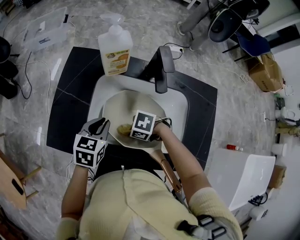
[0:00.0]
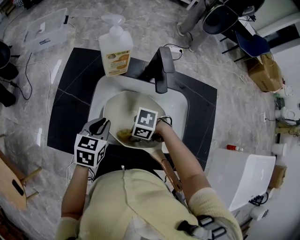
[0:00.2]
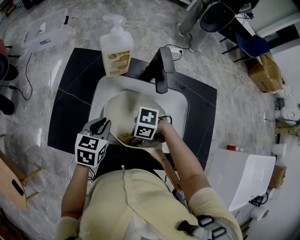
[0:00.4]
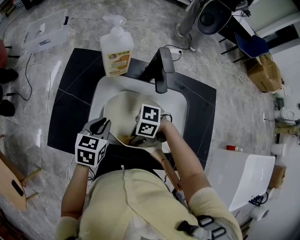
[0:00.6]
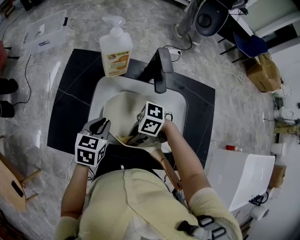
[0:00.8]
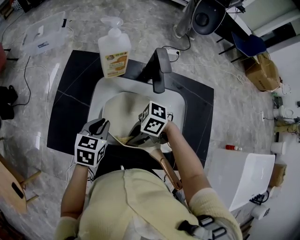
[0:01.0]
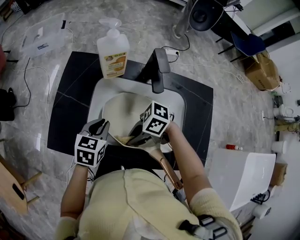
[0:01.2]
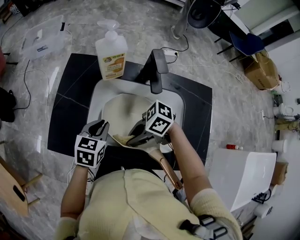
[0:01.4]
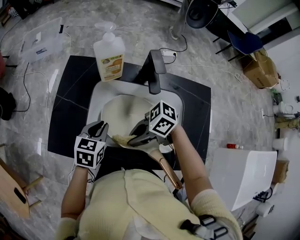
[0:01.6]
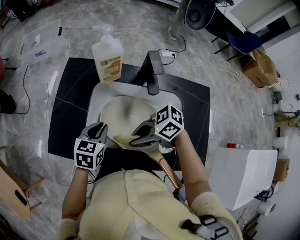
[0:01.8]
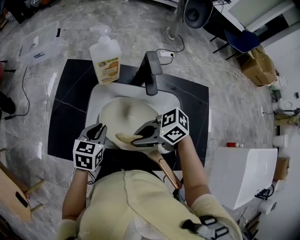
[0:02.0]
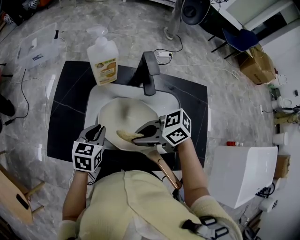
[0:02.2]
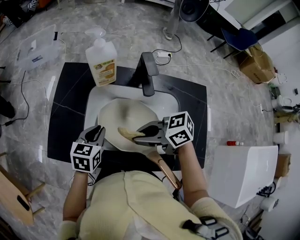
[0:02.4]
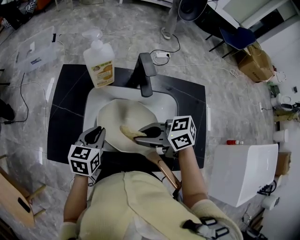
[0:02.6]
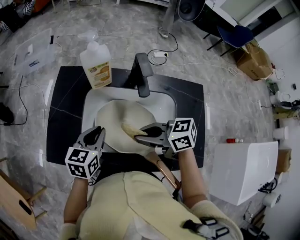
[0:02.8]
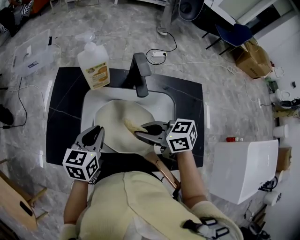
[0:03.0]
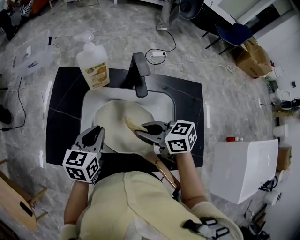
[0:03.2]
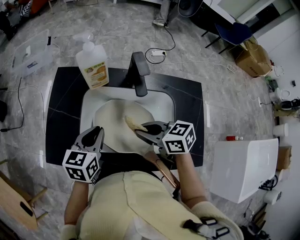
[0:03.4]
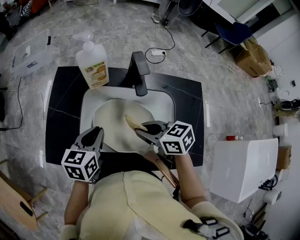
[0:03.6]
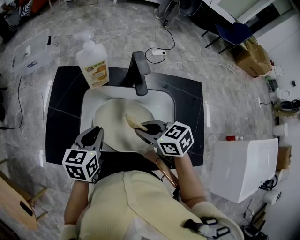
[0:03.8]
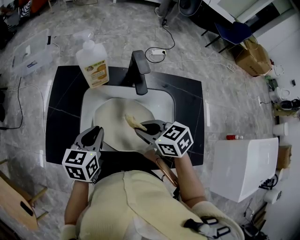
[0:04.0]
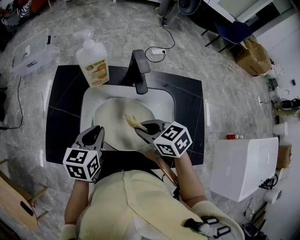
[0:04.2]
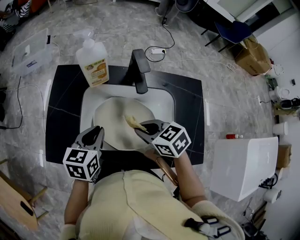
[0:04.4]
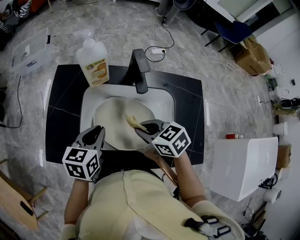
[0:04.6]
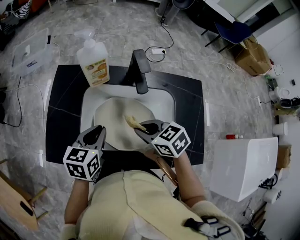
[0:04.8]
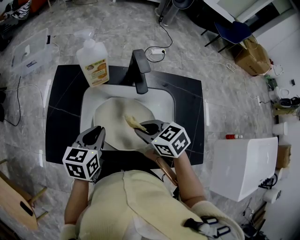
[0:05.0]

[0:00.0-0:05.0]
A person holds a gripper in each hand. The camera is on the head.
0:00.0 to 0:01.6: The right gripper goes approximately 10 cm upward, and tilts its fingers approximately 30 degrees upward.
0:01.6 to 0:03.4: The right gripper moves some 10 cm, and rotates some 50 degrees. Meanwhile the left gripper shifts approximately 5 cm upward.
0:03.4 to 0:05.0: The grippers make only small movements.

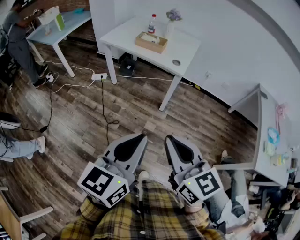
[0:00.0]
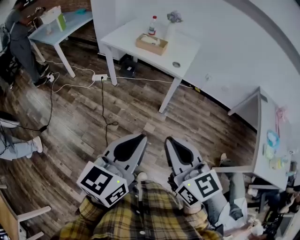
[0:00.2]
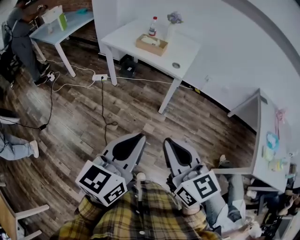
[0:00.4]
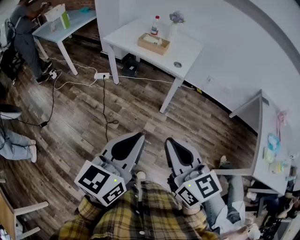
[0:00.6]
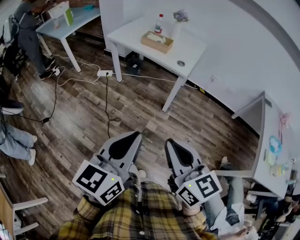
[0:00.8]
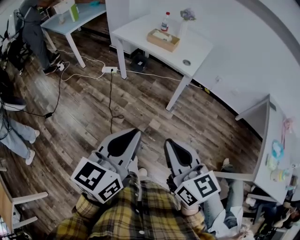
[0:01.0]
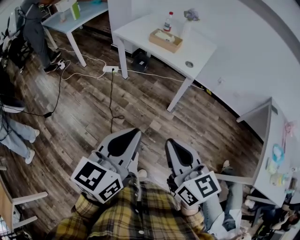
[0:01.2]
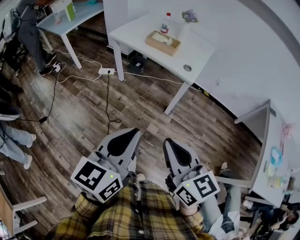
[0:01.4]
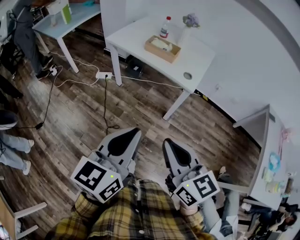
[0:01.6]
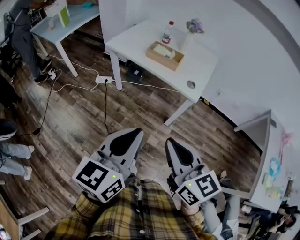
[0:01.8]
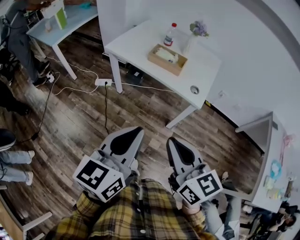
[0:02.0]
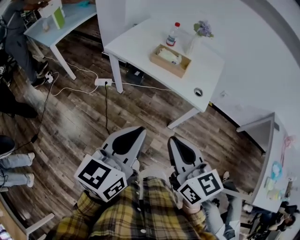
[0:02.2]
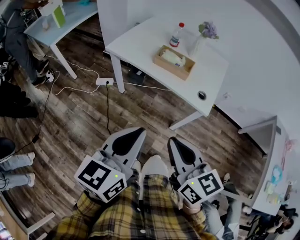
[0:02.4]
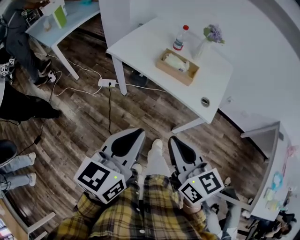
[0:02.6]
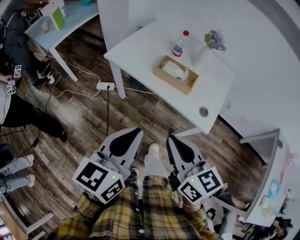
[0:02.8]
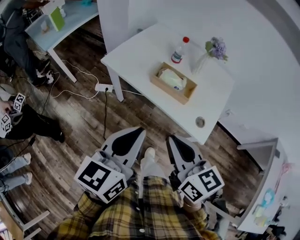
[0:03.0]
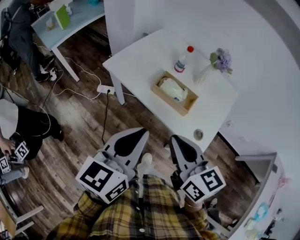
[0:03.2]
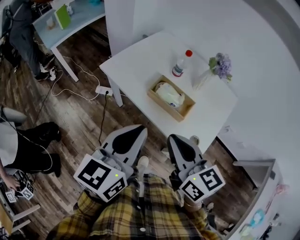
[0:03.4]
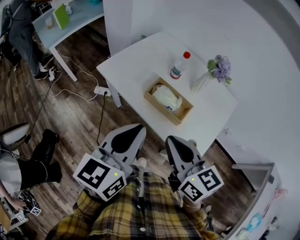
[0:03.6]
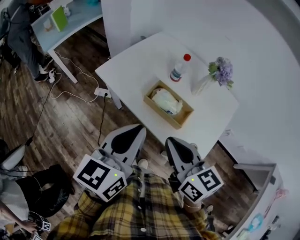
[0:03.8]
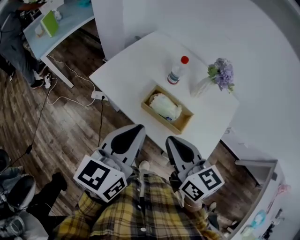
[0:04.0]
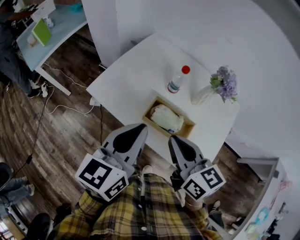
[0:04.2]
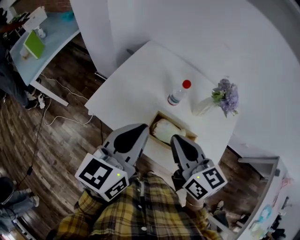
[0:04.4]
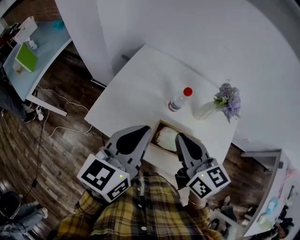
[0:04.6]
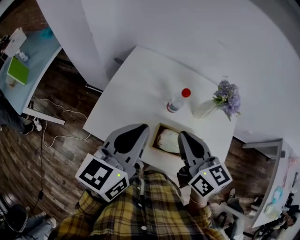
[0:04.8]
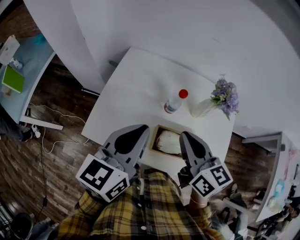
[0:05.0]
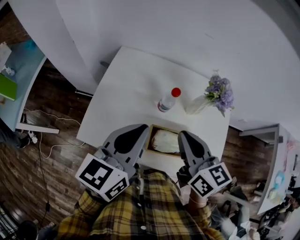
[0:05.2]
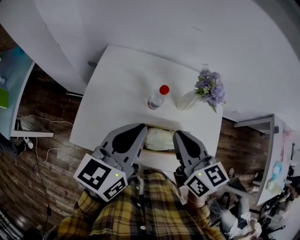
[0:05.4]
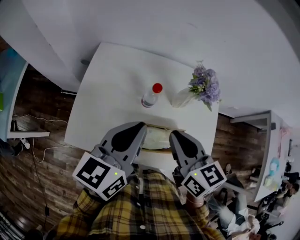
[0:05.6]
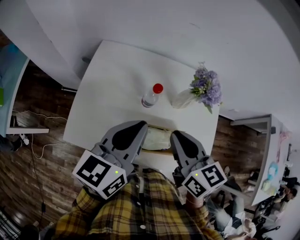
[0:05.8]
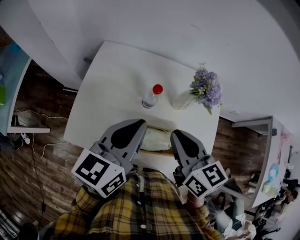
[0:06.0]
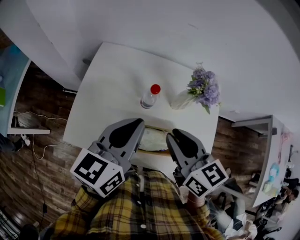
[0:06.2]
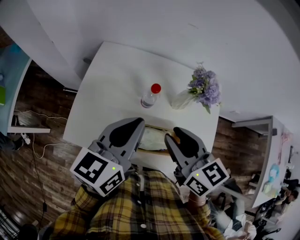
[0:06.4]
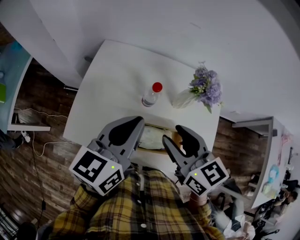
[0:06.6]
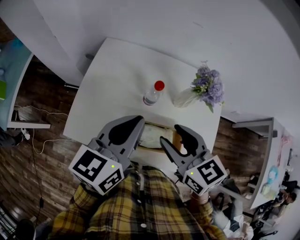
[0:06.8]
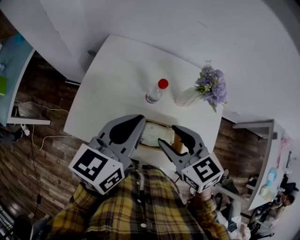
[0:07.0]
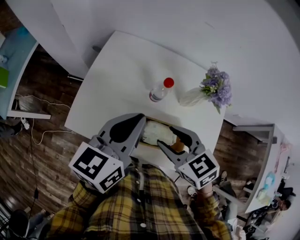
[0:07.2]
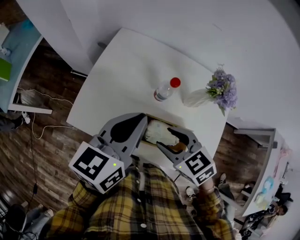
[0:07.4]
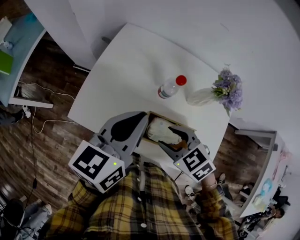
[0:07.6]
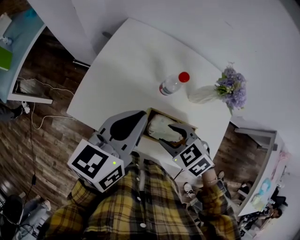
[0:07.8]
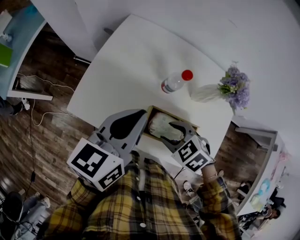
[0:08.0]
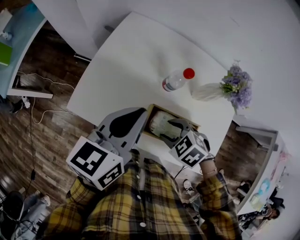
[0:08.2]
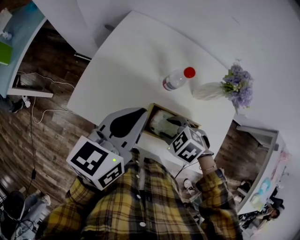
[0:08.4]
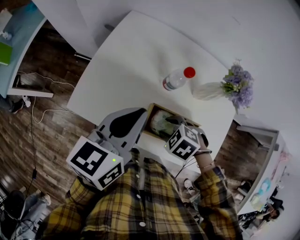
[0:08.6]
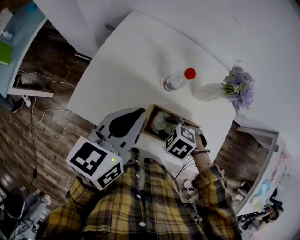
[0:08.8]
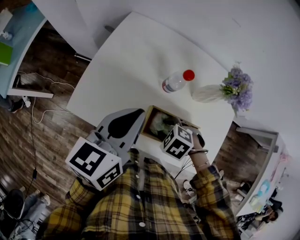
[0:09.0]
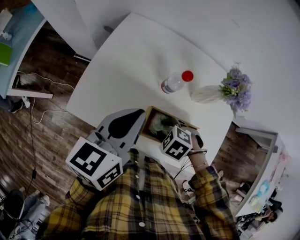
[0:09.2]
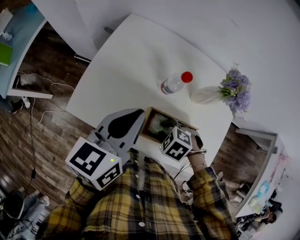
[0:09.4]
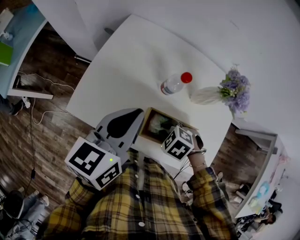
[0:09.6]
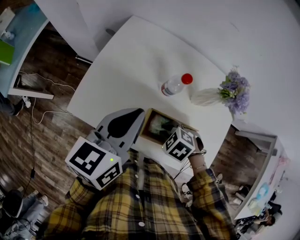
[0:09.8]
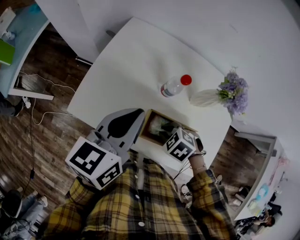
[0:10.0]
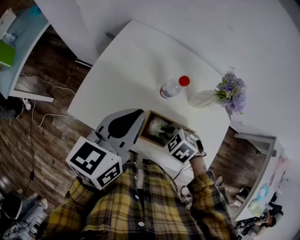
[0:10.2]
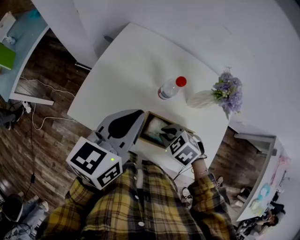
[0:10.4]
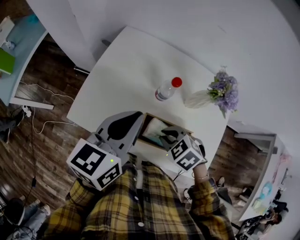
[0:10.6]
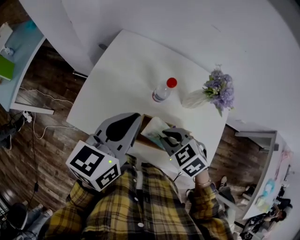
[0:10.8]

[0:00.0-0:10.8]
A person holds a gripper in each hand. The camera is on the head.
0:00.0 to 0:01.6: The two grippers go approximately 15 cm forward.
0:01.6 to 0:03.0: The grippers both shift forward by approximately 30 cm.
0:03.0 to 0:04.6: Both grippers move forward, roughly 30 cm.
0:04.6 to 0:06.2: The left gripper travels forward and to the right by roughly 10 cm. Meanwhile the right gripper shifts about 5 cm to the right.
0:06.2 to 0:07.8: The left gripper moves approximately 5 cm. Meanwhile the right gripper goes roughly 15 cm downward, angles its fingers downward, by some 40 degrees, and opens up.
0:07.8 to 0:09.2: The right gripper heads downward, covering approximately 10 cm, and changes its angle by roughly 20 degrees.
0:09.2 to 0:10.8: The right gripper moves upward, about 10 cm, swivels roughly 30 degrees, and closes its fingers.

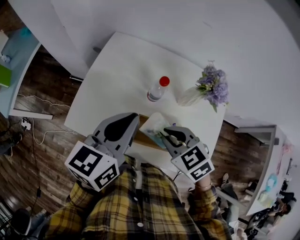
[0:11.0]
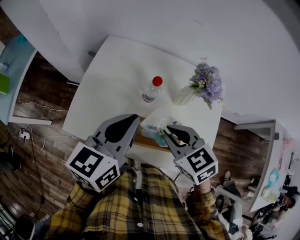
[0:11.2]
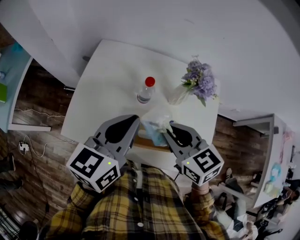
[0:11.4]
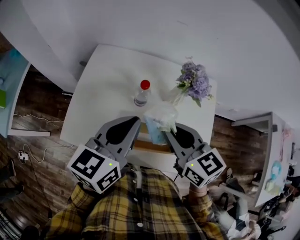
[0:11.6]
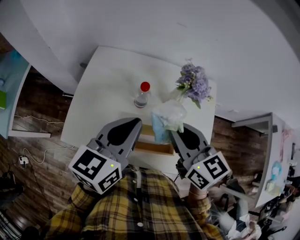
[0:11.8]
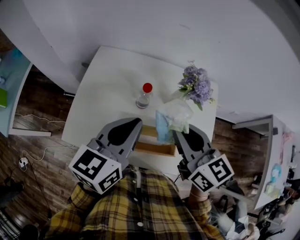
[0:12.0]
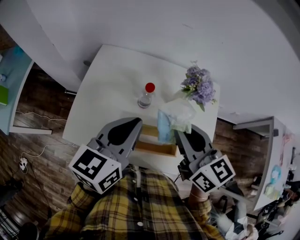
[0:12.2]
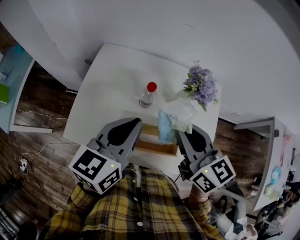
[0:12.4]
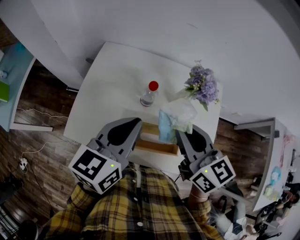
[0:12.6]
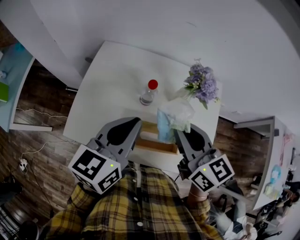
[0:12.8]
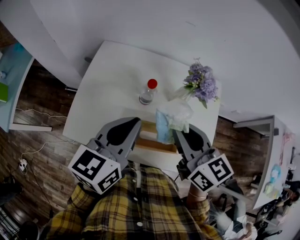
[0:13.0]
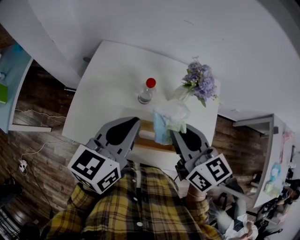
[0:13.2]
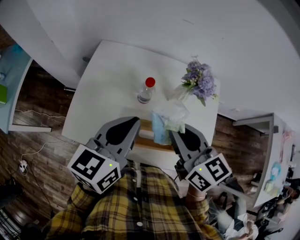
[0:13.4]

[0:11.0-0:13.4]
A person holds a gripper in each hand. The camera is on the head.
0:11.0 to 0:12.2: The right gripper moves upward and to the right, roughly 15 cm, and points its fingers roughly 30 degrees further upward.
0:12.2 to 0:13.4: The grippers stay close to where they were, moving slightly.

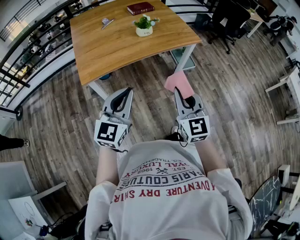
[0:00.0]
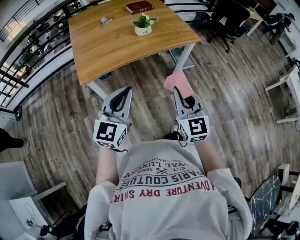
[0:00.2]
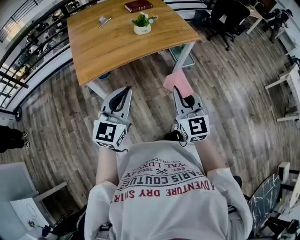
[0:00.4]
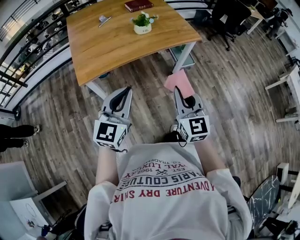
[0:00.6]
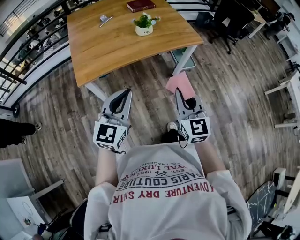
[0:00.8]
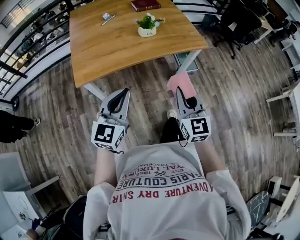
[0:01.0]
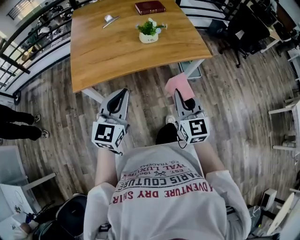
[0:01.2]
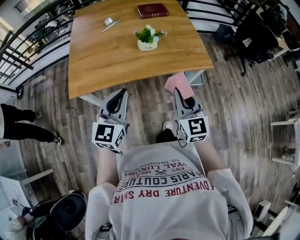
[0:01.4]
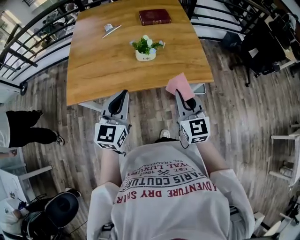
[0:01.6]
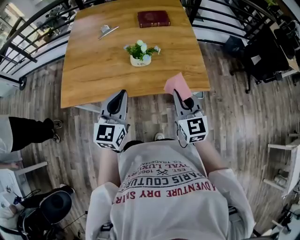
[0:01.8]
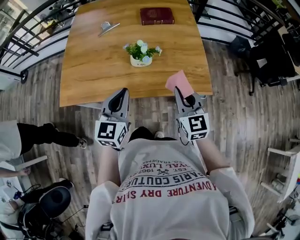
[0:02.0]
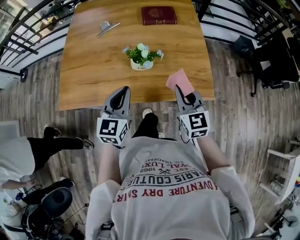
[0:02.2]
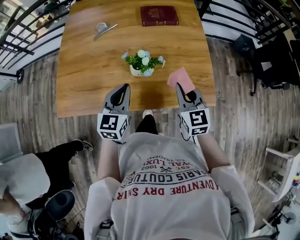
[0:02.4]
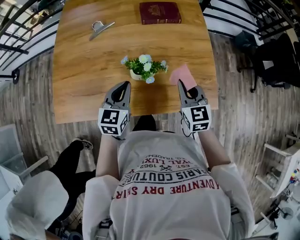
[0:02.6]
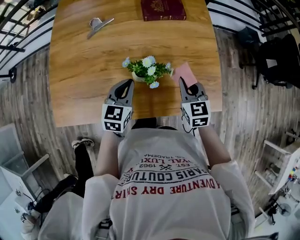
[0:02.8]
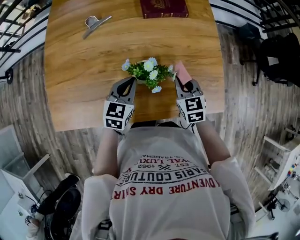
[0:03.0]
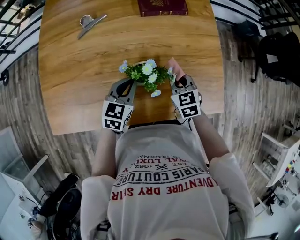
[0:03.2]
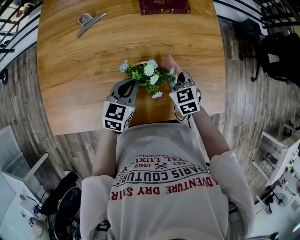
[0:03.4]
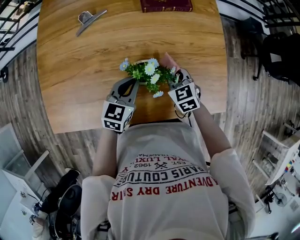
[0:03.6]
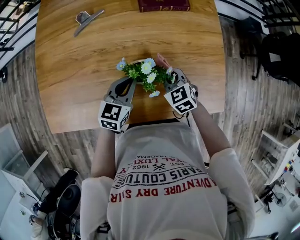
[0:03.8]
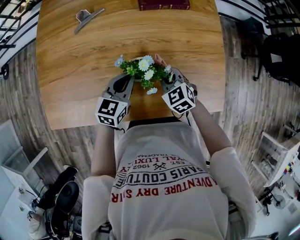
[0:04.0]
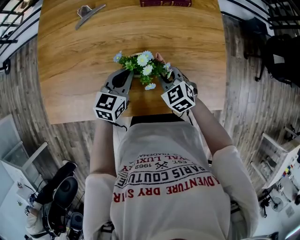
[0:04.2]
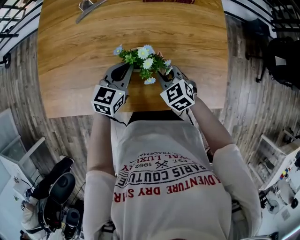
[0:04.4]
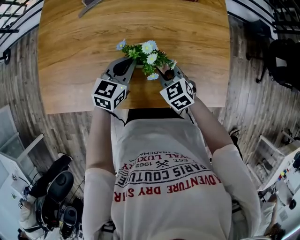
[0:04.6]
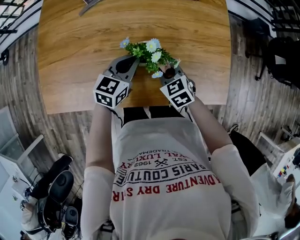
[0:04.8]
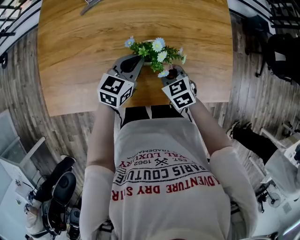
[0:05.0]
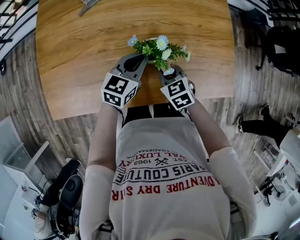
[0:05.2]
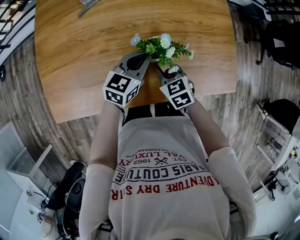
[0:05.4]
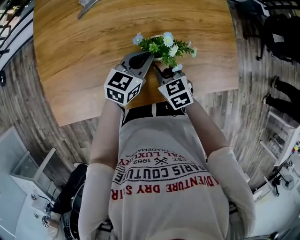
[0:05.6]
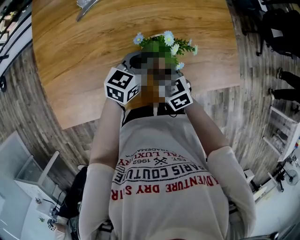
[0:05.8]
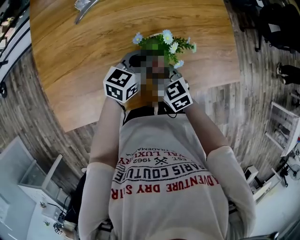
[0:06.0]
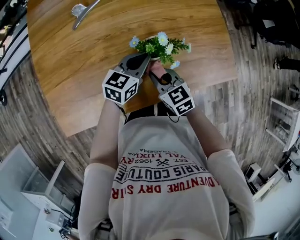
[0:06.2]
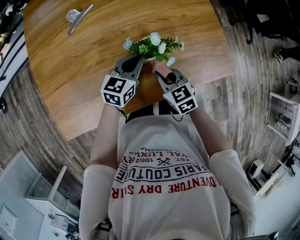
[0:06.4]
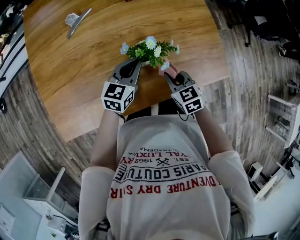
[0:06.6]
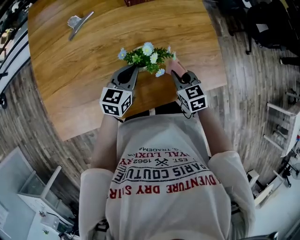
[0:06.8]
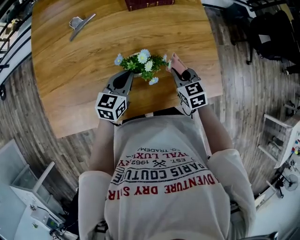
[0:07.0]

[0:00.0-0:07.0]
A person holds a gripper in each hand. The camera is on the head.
0:00.0 to 0:01.4: Both grippers travel together forward, some 25 cm.
0:01.4 to 0:02.8: Both grippers travel together forward and downward, roughly 35 cm. The right gripper rotates roughly 20 degrees; the left gripper rotates approximately 20 degrees.
0:02.8 to 0:04.2: The right gripper moves downward and to the left, about 10 cm, and rotates about 30 degrees. The left gripper changes place by about 5 cm.
0:04.2 to 0:05.6: The right gripper moves to the left, approximately 10 cm, and swivels about 20 degrees.
0:05.6 to 0:07.0: The right gripper heads to the right, covering roughly 15 cm.
